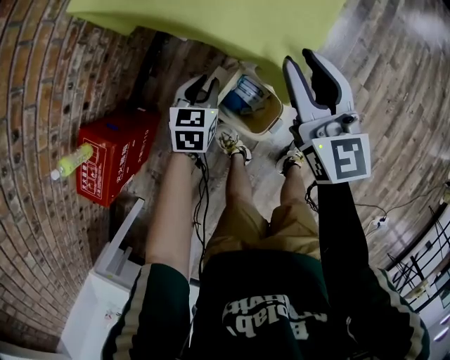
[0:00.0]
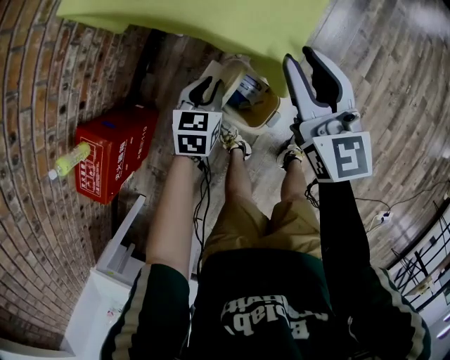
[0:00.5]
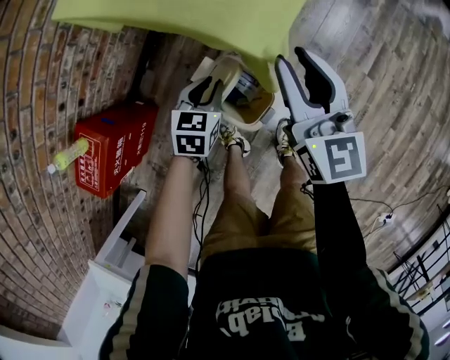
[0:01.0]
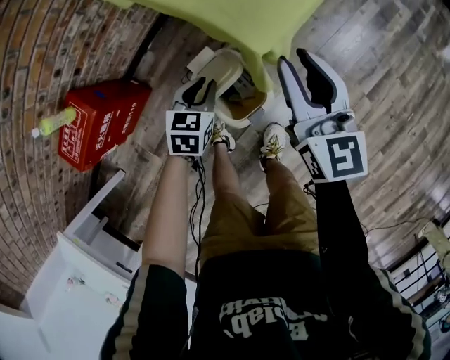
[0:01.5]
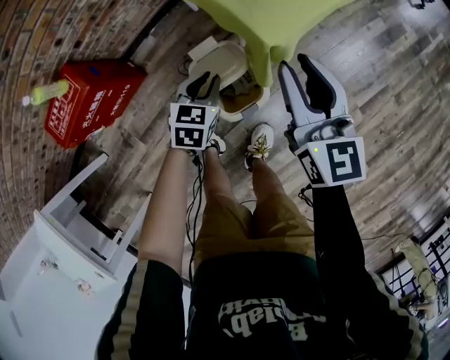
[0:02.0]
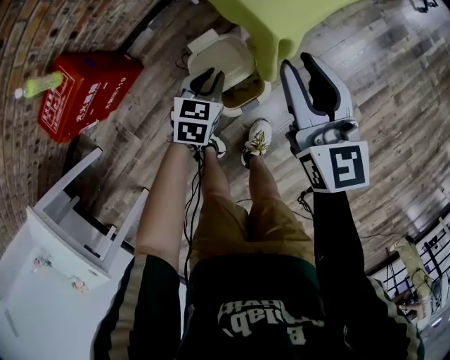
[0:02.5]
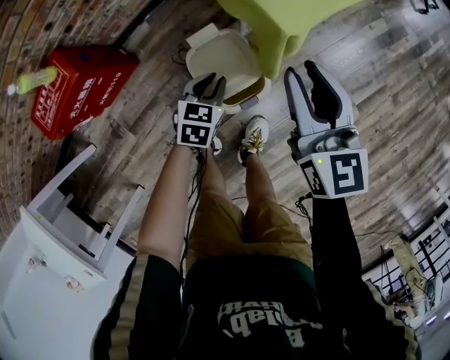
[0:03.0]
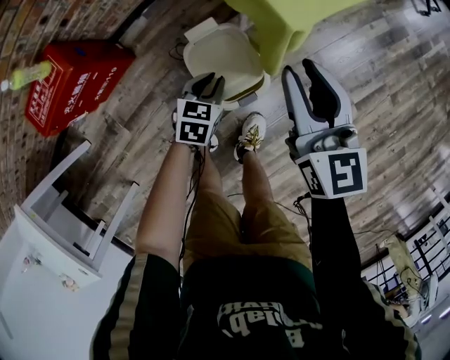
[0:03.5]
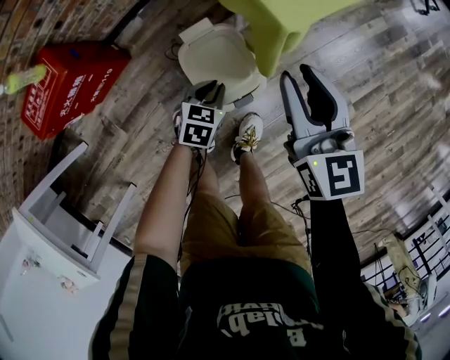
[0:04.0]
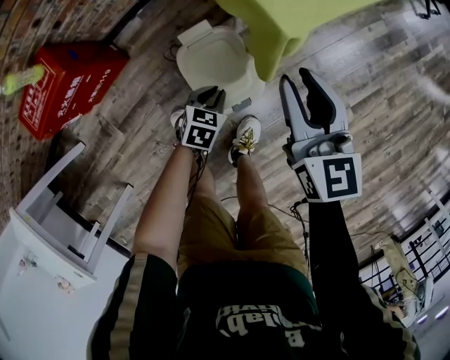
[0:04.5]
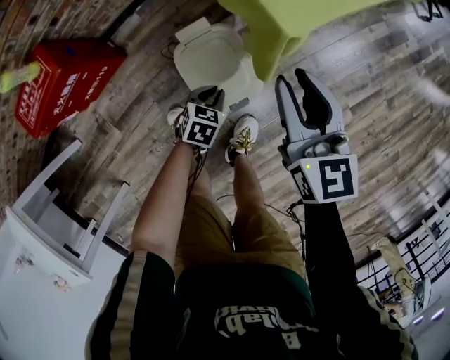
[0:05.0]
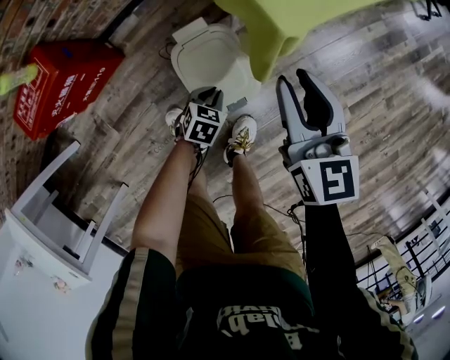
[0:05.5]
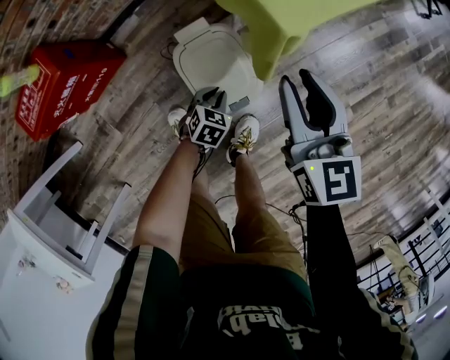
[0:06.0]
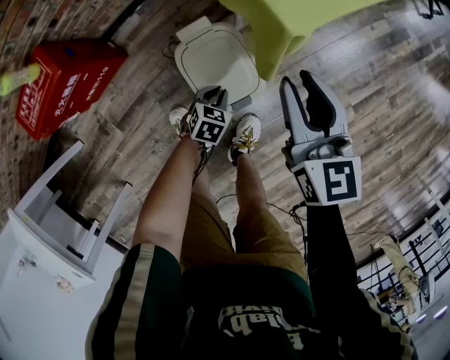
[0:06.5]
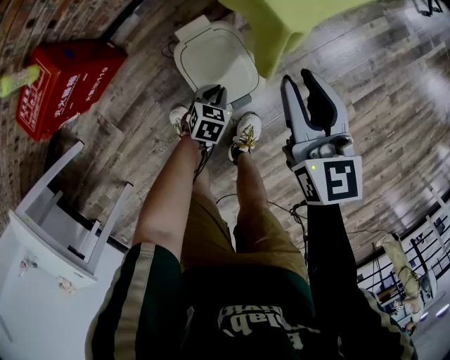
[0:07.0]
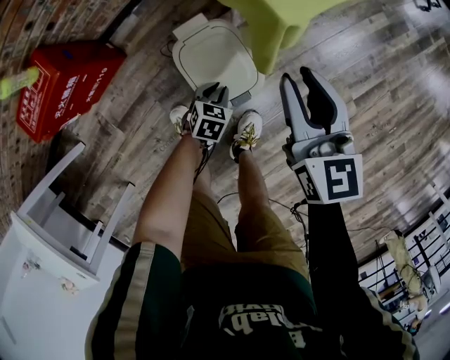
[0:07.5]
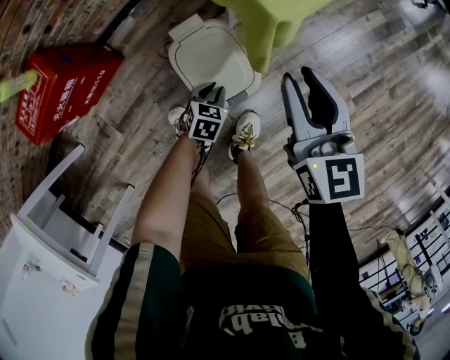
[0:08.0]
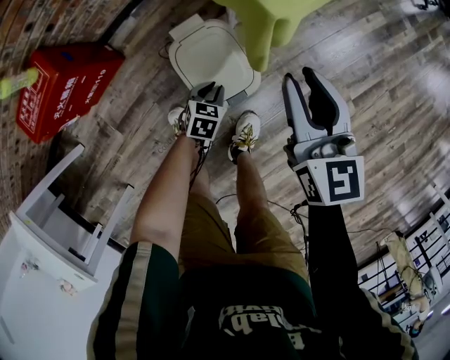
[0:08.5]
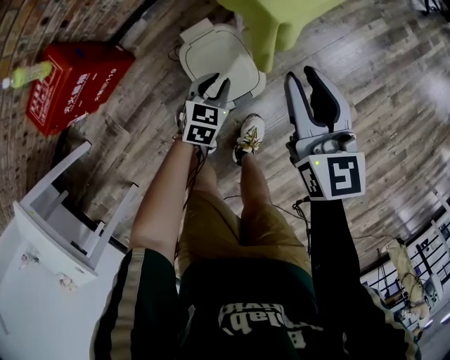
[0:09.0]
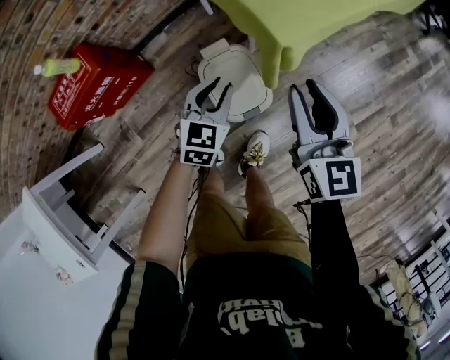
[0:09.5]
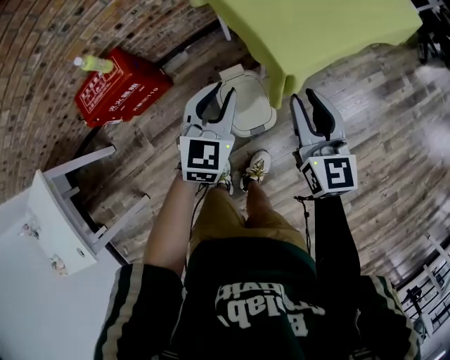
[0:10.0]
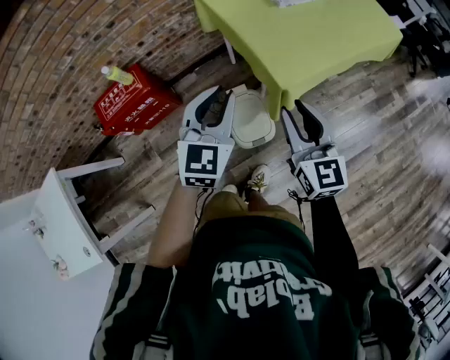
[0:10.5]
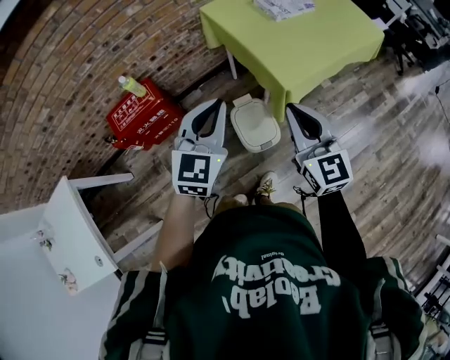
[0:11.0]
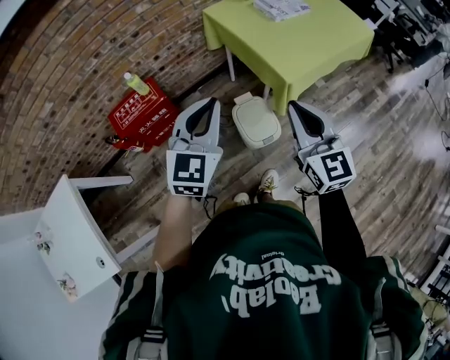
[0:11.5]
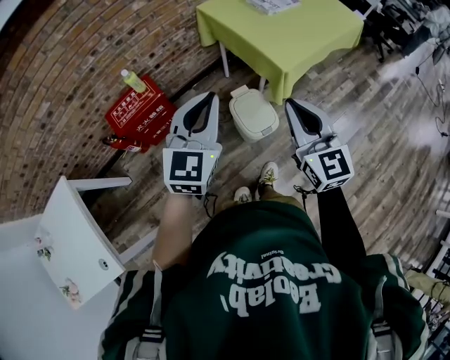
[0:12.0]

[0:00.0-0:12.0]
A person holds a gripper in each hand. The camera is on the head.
0:00.0 to 0:02.0: The right gripper goes roughly 10 cm backward and to the right. The left gripper moves backward and to the right, about 10 cm.
0:02.0 to 0:04.0: The right gripper is displaced downward by some 5 cm. Meanwhile the left gripper travels downward and backward by some 10 cm.
0:04.0 to 0:06.0: The left gripper shifts some 10 cm downward.
0:06.0 to 0:08.0: There are only small adjustments of the grippers.
0:08.0 to 0:10.0: The right gripper goes approximately 15 cm upward. The left gripper heads upward, covering some 40 cm, and points its fingers some 30 degrees further upward.
0:10.0 to 0:12.0: Both grippers move upward, backward and to the left, about 30 cm. The right gripper closes. The left gripper closes up.

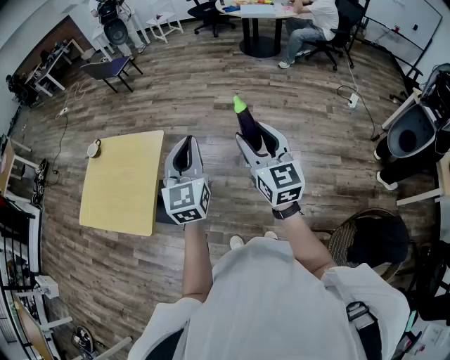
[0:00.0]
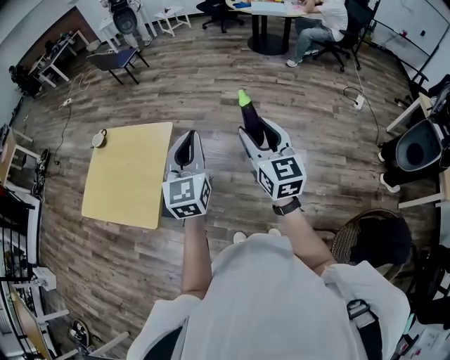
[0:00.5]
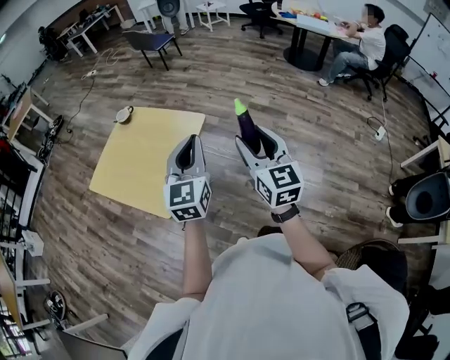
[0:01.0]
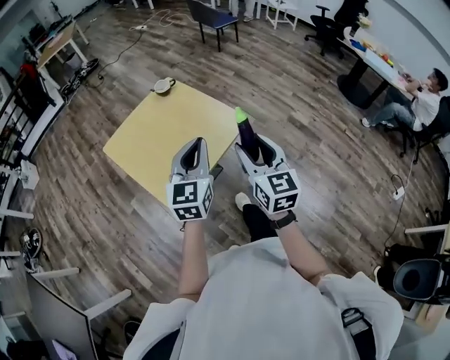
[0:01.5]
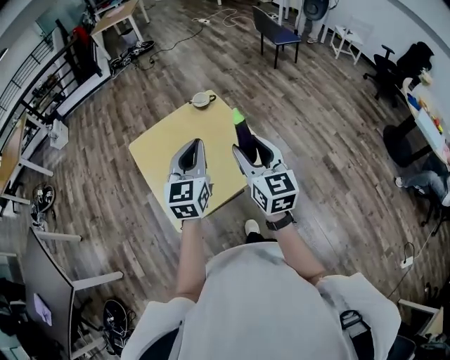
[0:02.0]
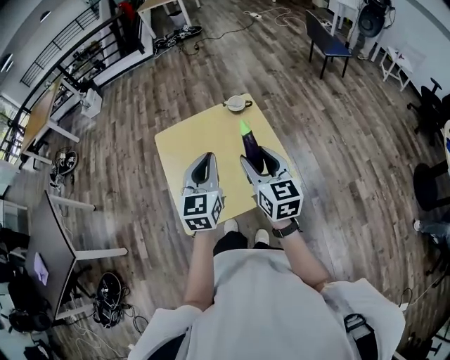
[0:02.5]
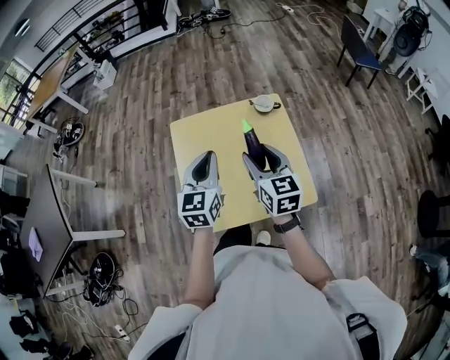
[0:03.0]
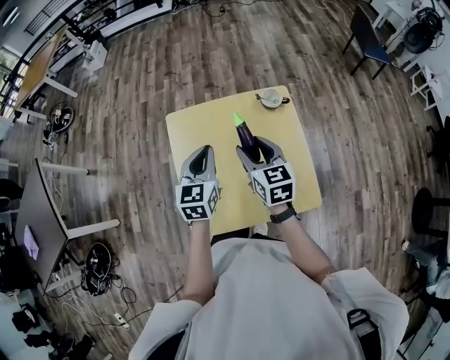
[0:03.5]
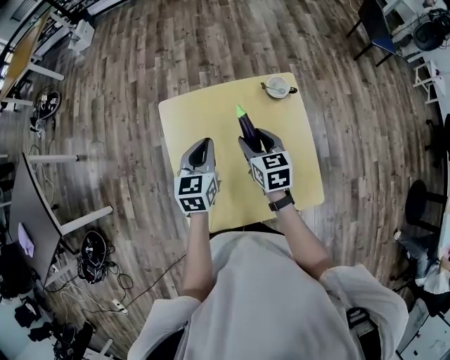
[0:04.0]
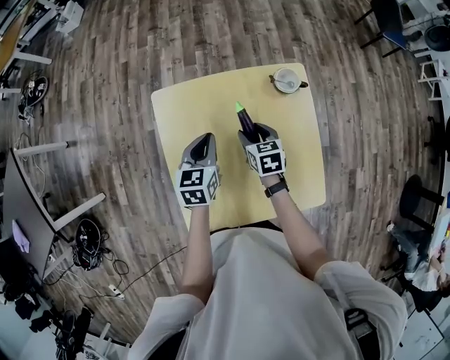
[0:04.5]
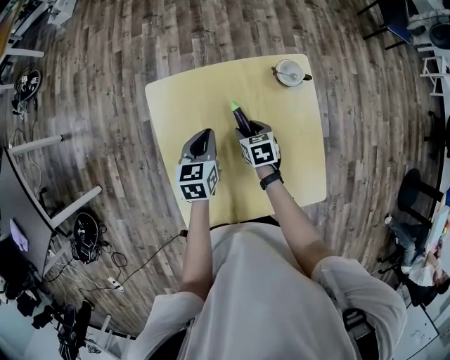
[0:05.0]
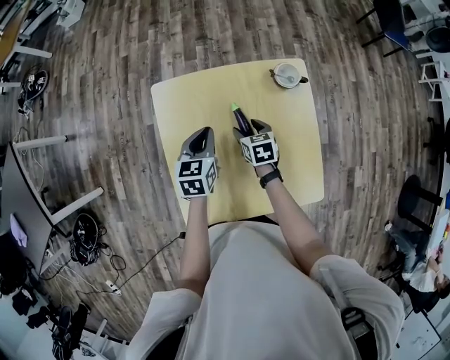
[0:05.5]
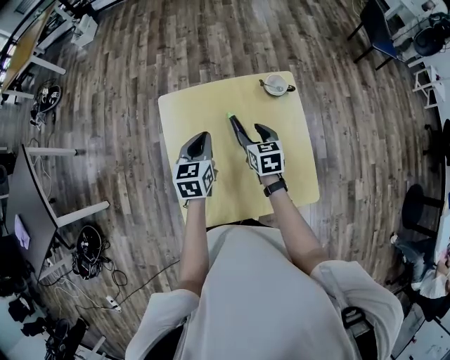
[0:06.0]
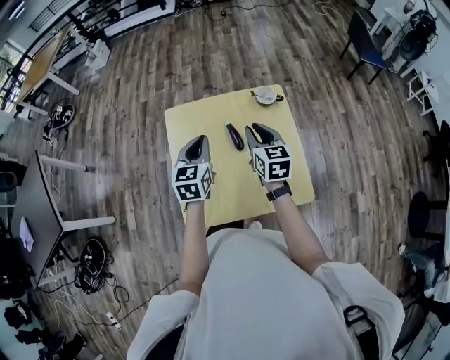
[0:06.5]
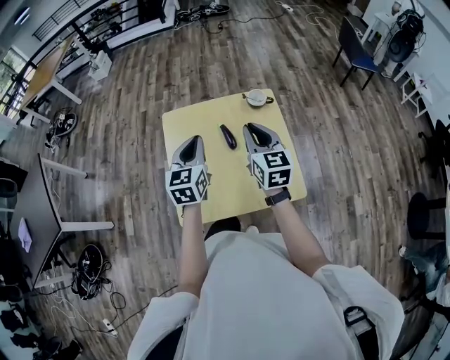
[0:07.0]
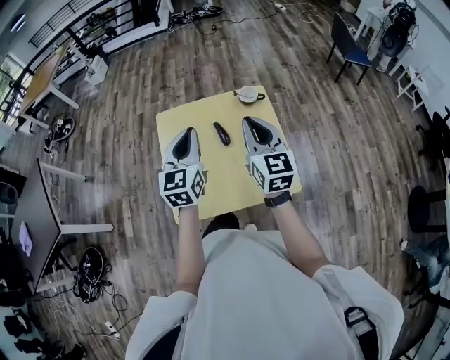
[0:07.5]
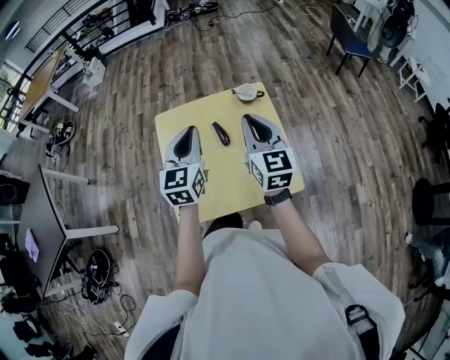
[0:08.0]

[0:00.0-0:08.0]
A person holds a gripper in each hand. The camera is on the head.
0:00.0 to 0:02.0: The pair of grippers is taken about 50 cm. The left gripper rotates some 50 degrees; the right gripper turns by roughly 50 degrees.
0:02.0 to 0:04.0: The two grippers go about 40 cm forward, downward and to the left. The left gripper rotates roughly 30 degrees. The right gripper turns by about 40 degrees.
0:04.0 to 0:06.0: The right gripper goes downward and returns, about 20 cm each way, while the left gripper goes downward and returns, approximately 10 cm each way.
0:06.0 to 0:08.0: The grippers both shift upward and backward by roughly 25 cm. The right gripper tips its fingers upward by about 30 degrees, and closes its fingers. The left gripper rotates some 20 degrees.

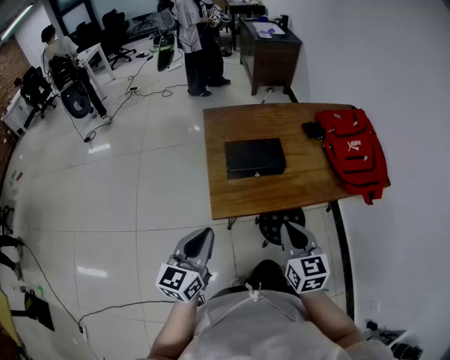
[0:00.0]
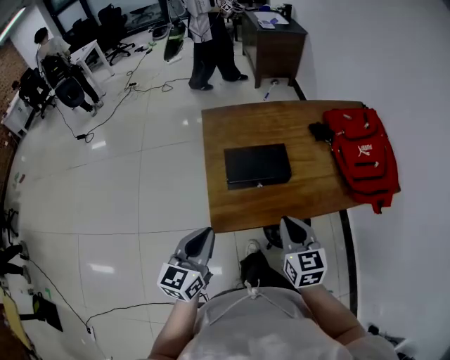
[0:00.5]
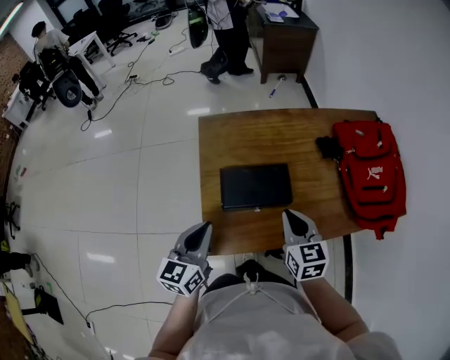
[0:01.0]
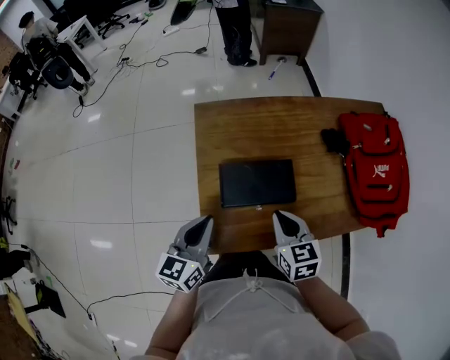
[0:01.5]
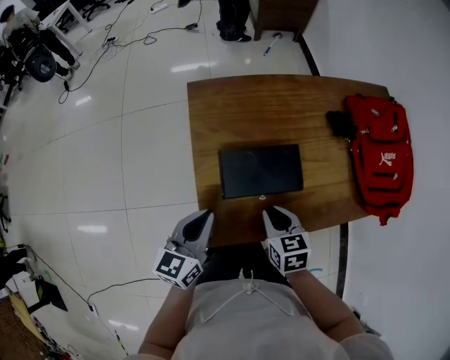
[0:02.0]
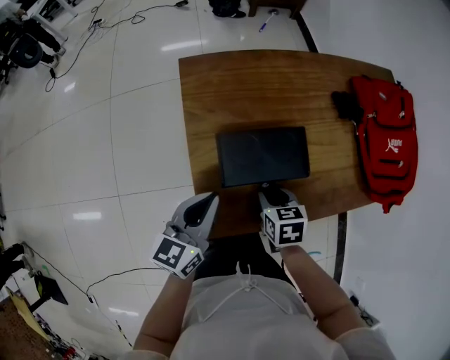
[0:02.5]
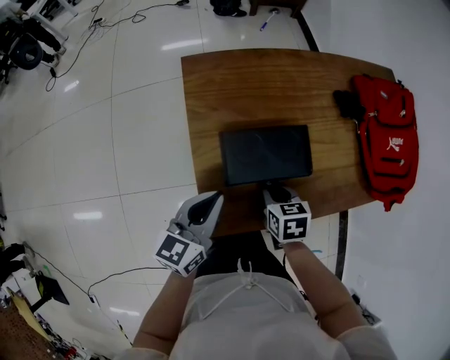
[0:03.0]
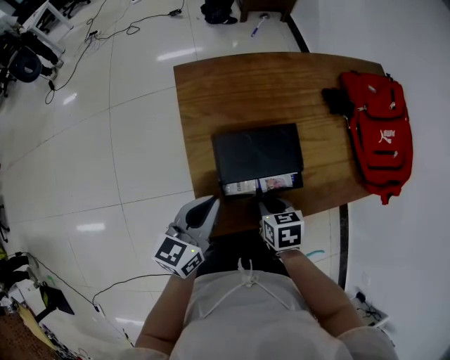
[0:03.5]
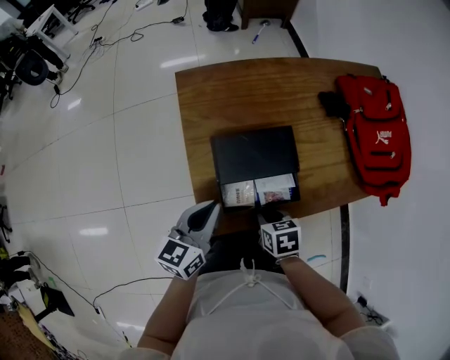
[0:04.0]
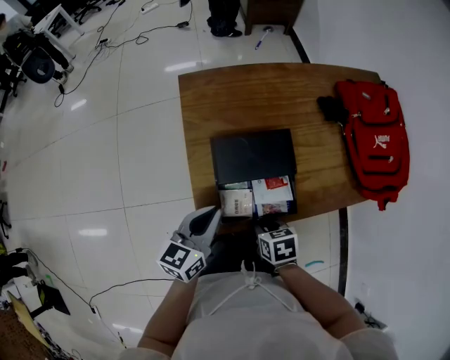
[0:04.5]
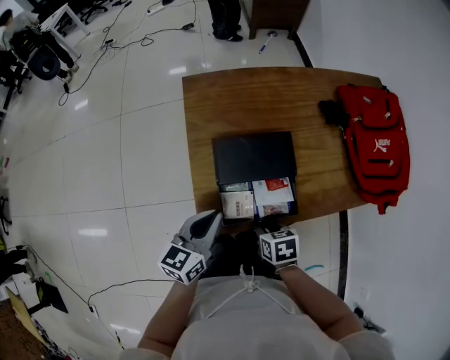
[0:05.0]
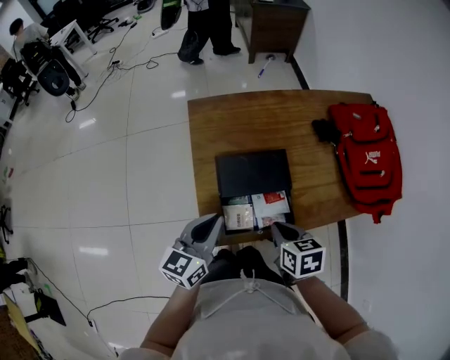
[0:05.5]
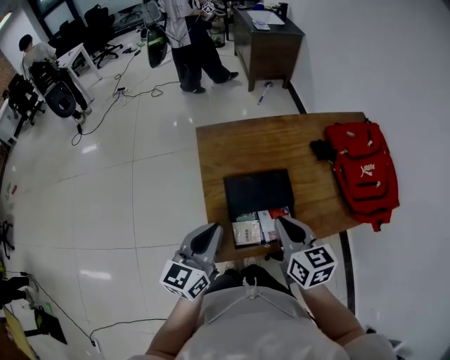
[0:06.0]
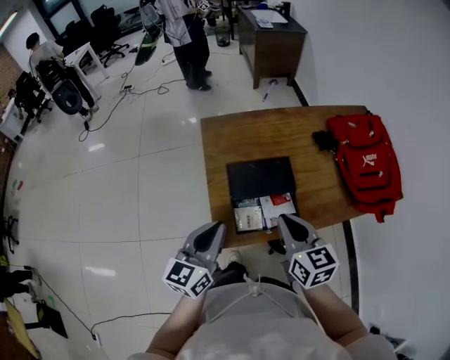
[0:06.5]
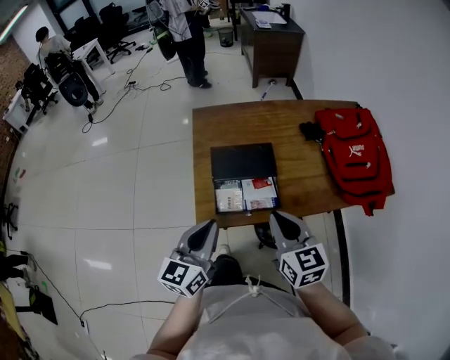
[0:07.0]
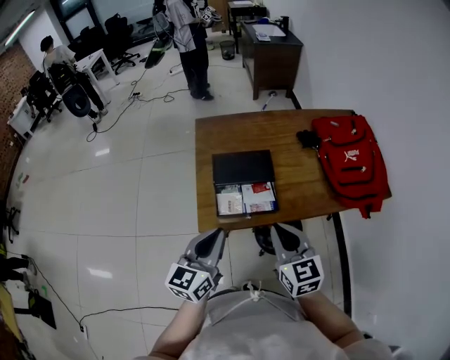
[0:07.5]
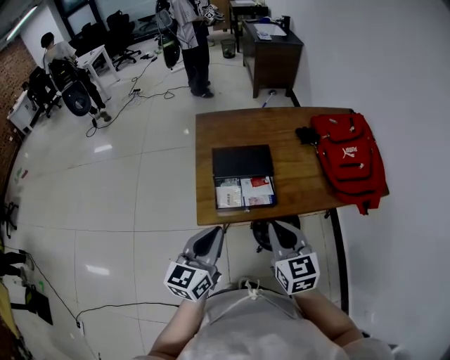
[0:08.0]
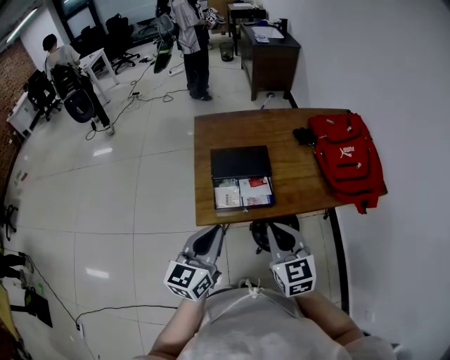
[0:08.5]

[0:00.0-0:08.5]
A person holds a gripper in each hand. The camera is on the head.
0:00.0 to 0:02.0: The right gripper heads forward and downward, covering approximately 25 cm, and rotates about 30 degrees. Meanwhile the left gripper goes about 20 cm forward.
0:02.0 to 0:04.0: The right gripper moves downward and backward, approximately 10 cm.
0:04.0 to 0:06.5: The left gripper shifts about 10 cm upward and backward, while the right gripper heads upward, covering approximately 20 cm, and tips its fingers upward by some 40 degrees.
0:06.5 to 0:08.5: Both grippers move backward and to the right, about 15 cm.
